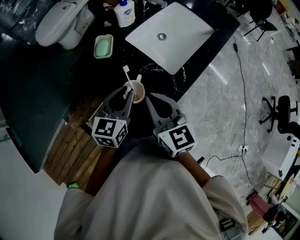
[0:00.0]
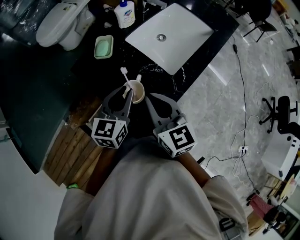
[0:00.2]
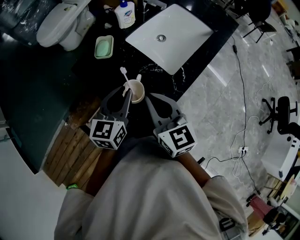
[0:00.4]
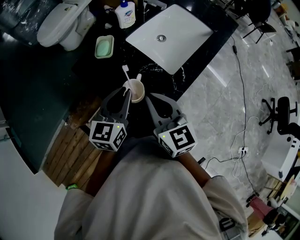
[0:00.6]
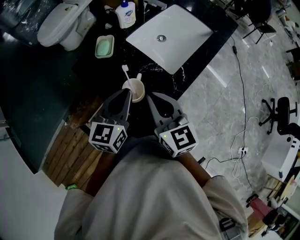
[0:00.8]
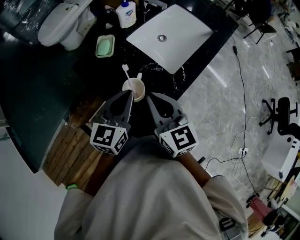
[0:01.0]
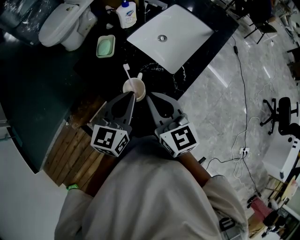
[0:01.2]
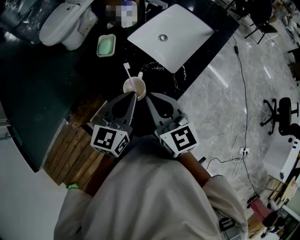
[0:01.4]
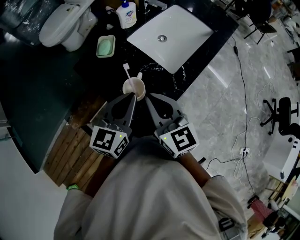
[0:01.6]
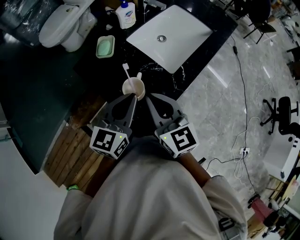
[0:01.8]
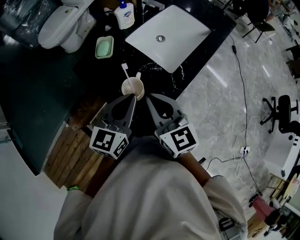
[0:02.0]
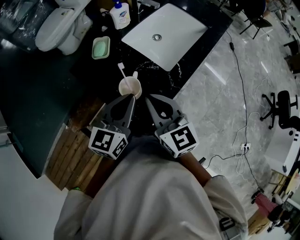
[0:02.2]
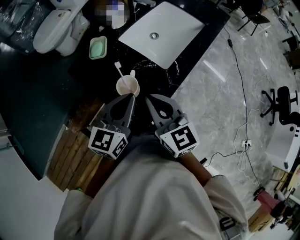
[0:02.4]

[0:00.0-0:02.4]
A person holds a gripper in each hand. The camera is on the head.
0:00.0 to 0:01.2: The left gripper moves approximately 5 cm.
0:01.2 to 0:02.4: The grippers stay close to where they were, moving slightly.

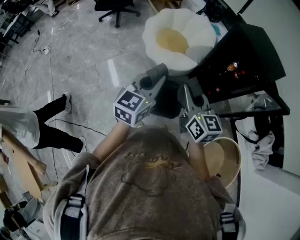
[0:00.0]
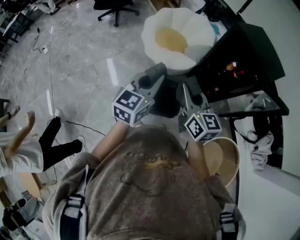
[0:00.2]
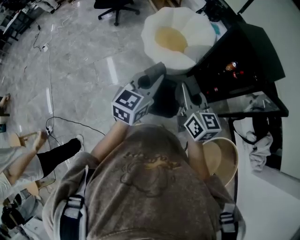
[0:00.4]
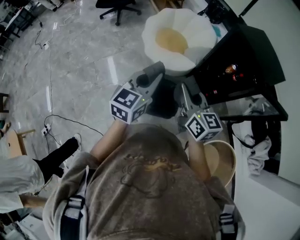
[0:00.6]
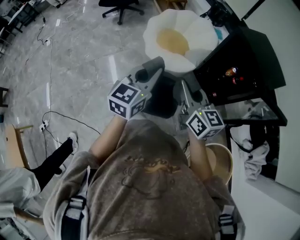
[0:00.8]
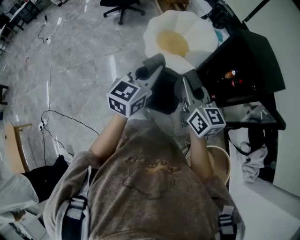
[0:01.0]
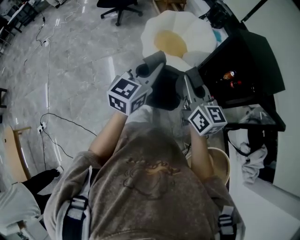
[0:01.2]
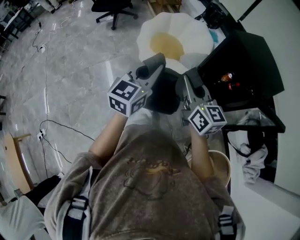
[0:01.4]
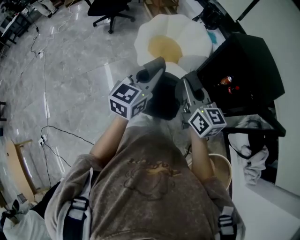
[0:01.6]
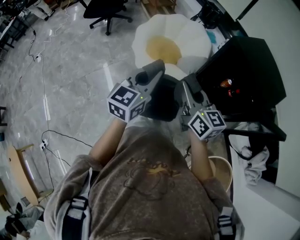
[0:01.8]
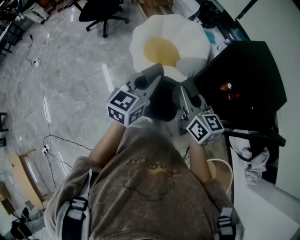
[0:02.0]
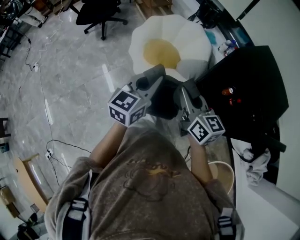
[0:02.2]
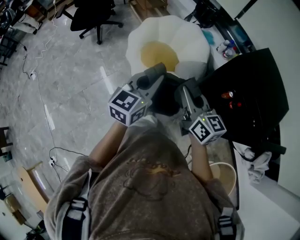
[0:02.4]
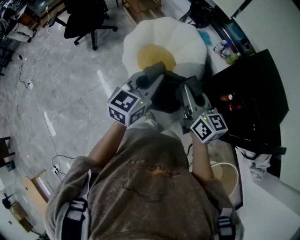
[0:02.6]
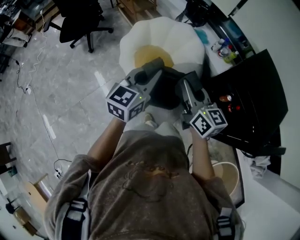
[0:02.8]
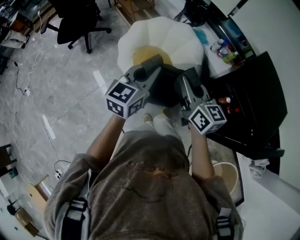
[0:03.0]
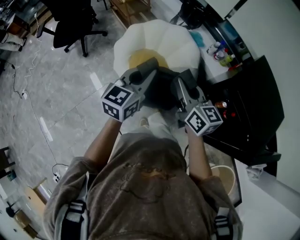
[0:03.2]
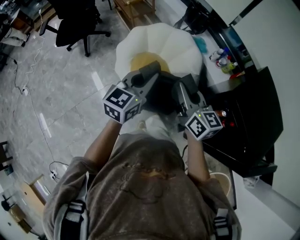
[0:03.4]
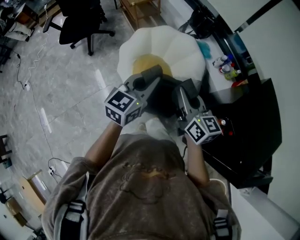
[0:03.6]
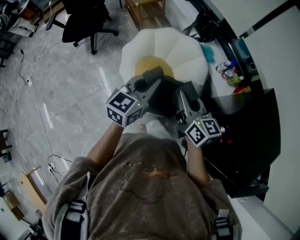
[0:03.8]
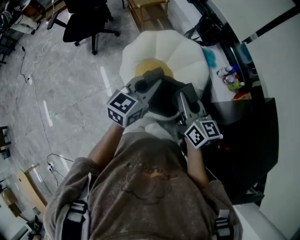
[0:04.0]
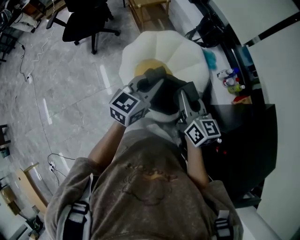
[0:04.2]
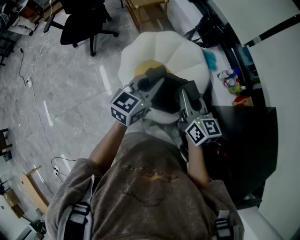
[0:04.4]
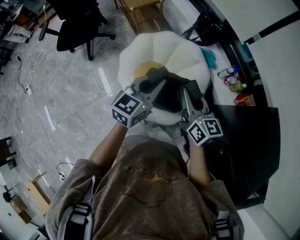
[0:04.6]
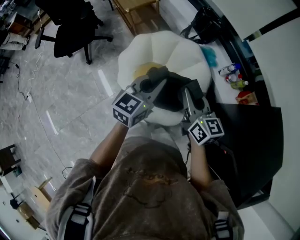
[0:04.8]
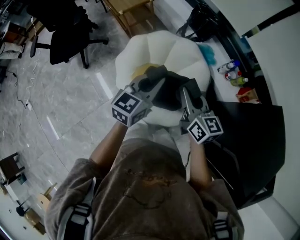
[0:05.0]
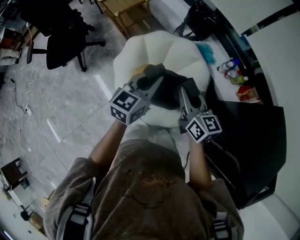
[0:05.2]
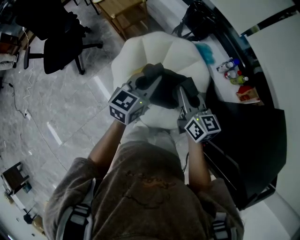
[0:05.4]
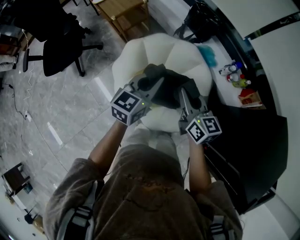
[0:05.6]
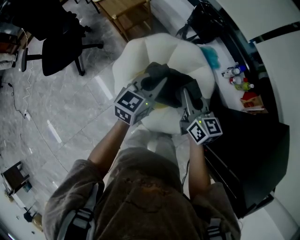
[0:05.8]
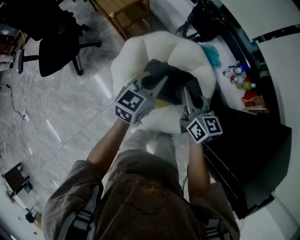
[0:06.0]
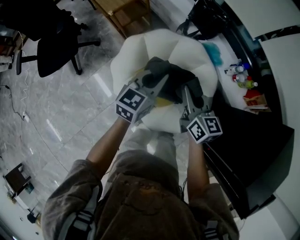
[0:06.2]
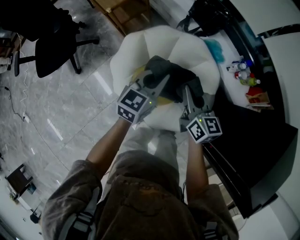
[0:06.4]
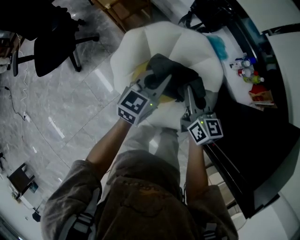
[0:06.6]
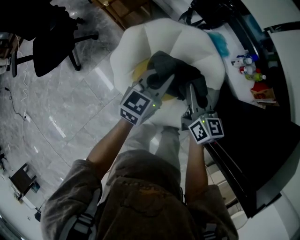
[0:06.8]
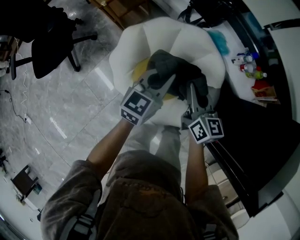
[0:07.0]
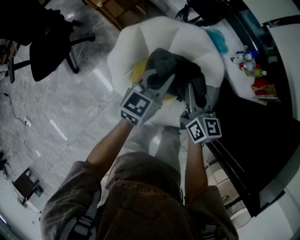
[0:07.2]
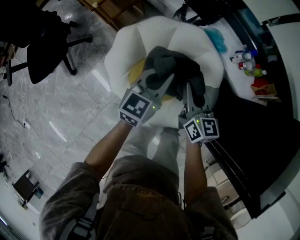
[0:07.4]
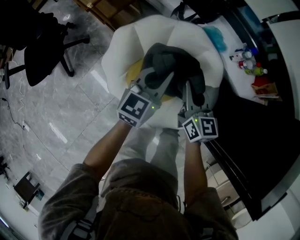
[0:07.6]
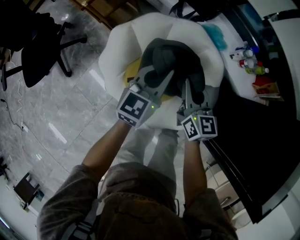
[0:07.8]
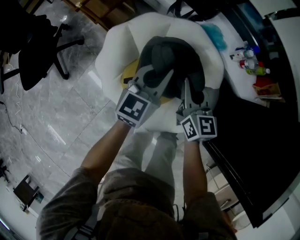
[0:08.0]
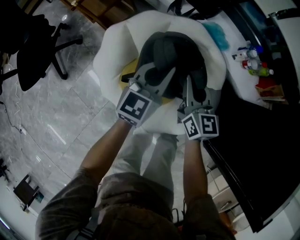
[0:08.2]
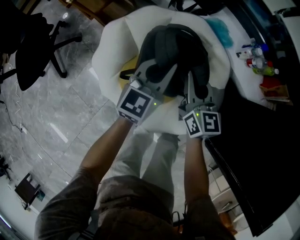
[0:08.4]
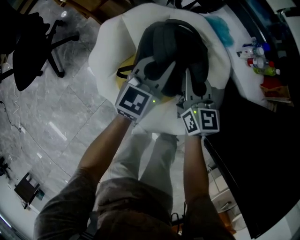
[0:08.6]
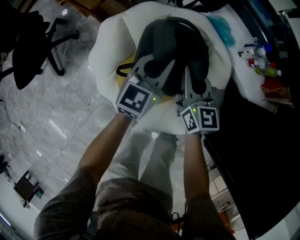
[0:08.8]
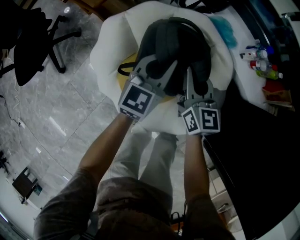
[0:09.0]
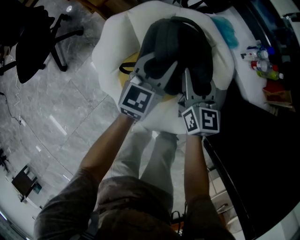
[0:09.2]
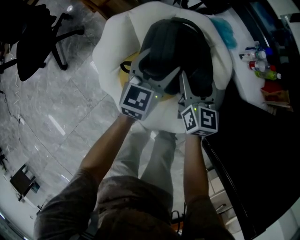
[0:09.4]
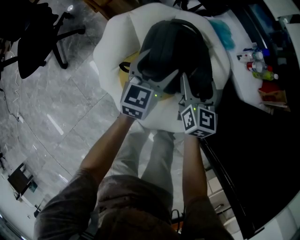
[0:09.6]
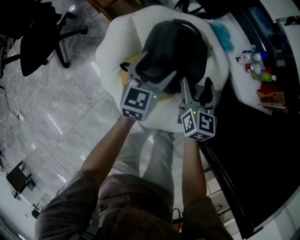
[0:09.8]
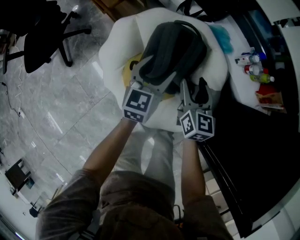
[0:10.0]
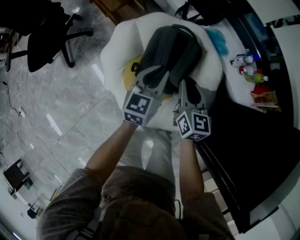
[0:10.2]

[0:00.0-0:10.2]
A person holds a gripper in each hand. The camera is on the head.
0:00.0 to 0:01.4: The right gripper travels forward and to the right by some 10 cm. The left gripper moves forward, roughly 10 cm.
0:01.4 to 0:03.0: Both grippers move forward, some 35 cm.
0:03.0 to 0:04.4: Both grippers move forward, about 20 cm.
0:04.4 to 0:05.8: Both grippers travel together forward and downward, about 20 cm.
0:05.8 to 0:07.2: Both grippers move downward, approximately 10 cm.
0:07.2 to 0:08.8: The grippers both shift downward and forward by some 15 cm.
0:08.8 to 0:10.2: Both grippers travel together backward and upward, roughly 10 cm. The left gripper opens, then closes again; the right gripper opens, then closes once more.

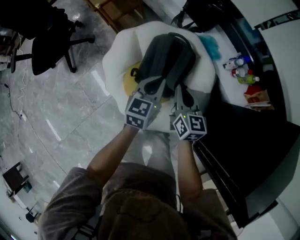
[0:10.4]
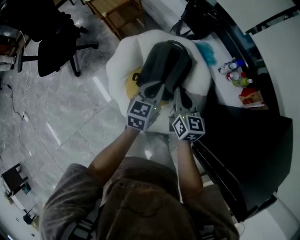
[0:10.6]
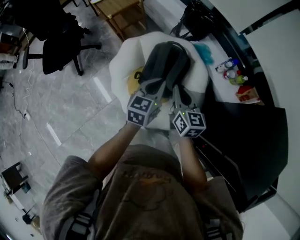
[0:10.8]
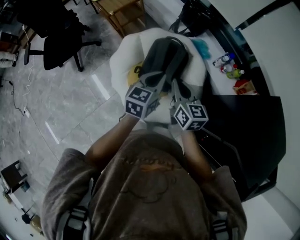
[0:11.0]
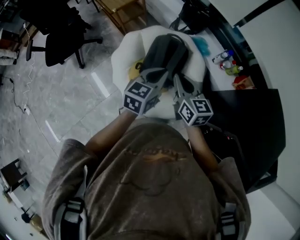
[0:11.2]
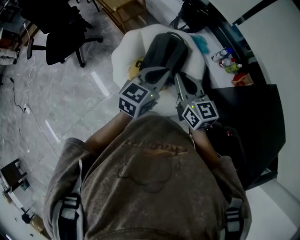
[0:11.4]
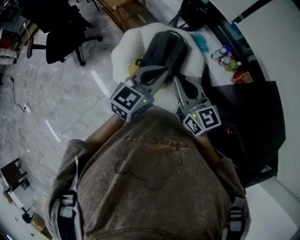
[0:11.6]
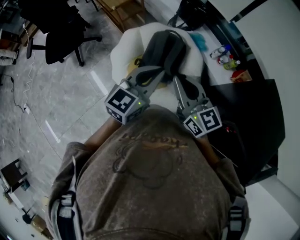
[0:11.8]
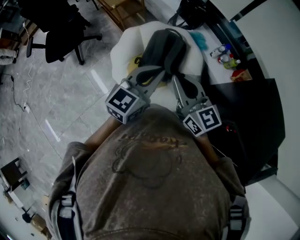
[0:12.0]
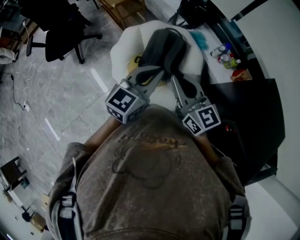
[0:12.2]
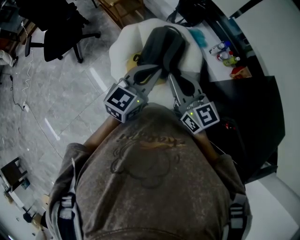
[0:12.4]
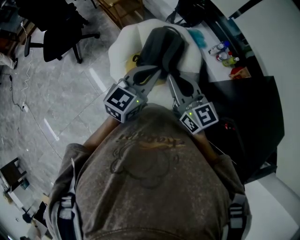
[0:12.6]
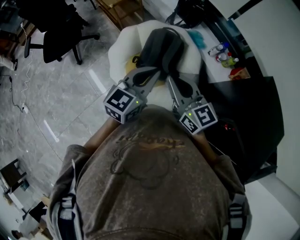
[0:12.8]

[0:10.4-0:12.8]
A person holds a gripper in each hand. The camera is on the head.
0:10.4 to 0:11.6: The two grippers go approximately 30 cm upward and backward. The right gripper swivels about 30 degrees.
0:11.6 to 0:12.8: The grippers make only small movements.

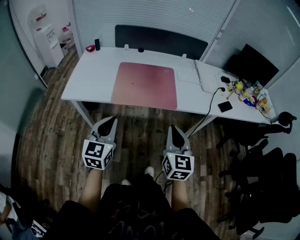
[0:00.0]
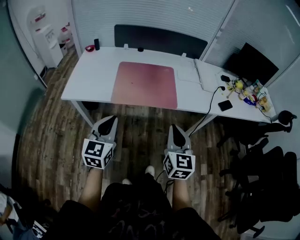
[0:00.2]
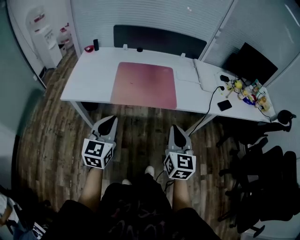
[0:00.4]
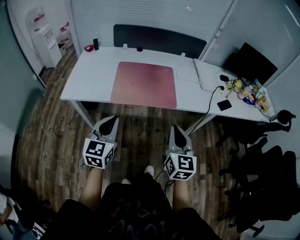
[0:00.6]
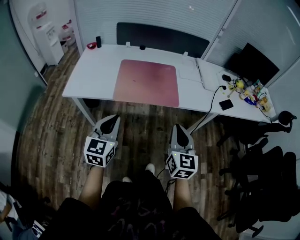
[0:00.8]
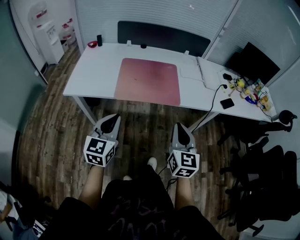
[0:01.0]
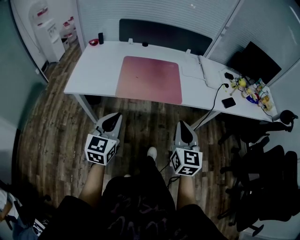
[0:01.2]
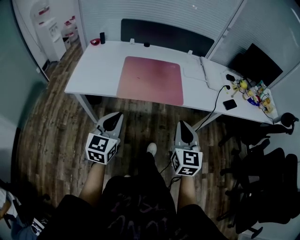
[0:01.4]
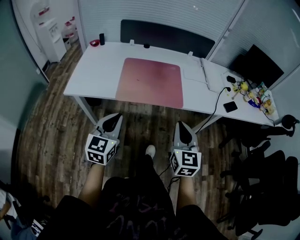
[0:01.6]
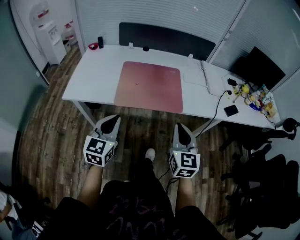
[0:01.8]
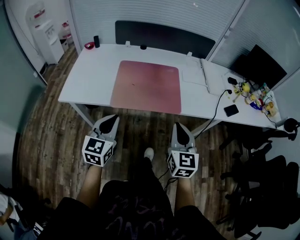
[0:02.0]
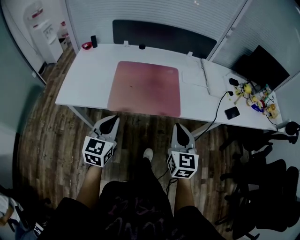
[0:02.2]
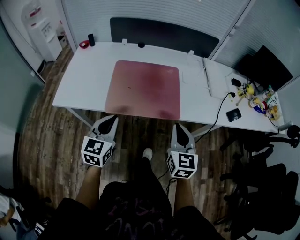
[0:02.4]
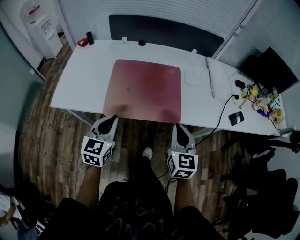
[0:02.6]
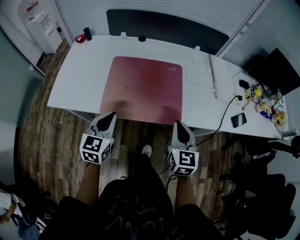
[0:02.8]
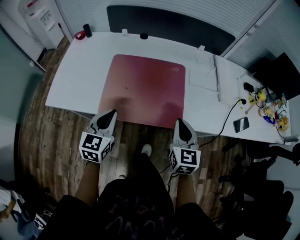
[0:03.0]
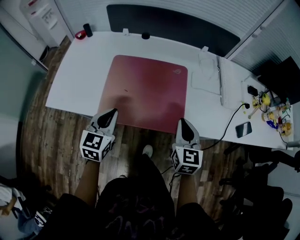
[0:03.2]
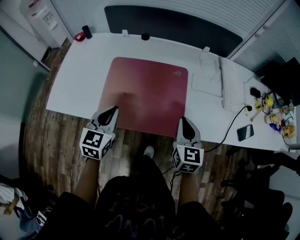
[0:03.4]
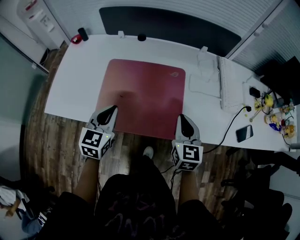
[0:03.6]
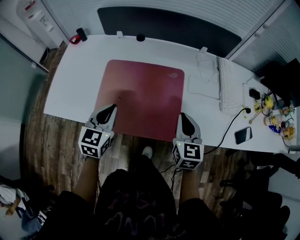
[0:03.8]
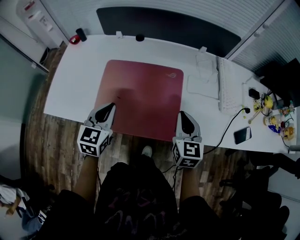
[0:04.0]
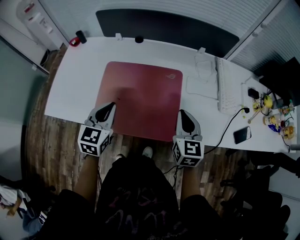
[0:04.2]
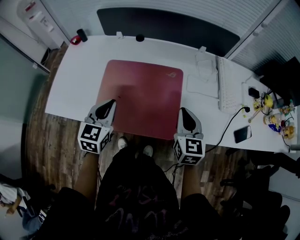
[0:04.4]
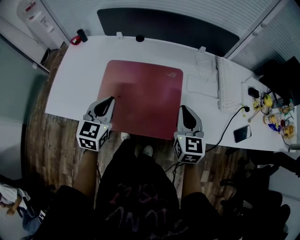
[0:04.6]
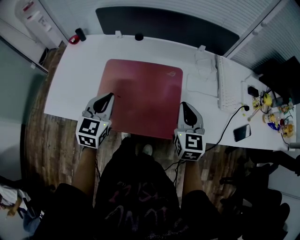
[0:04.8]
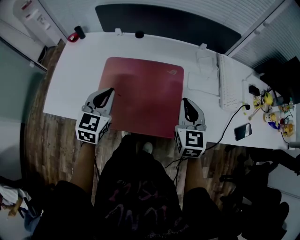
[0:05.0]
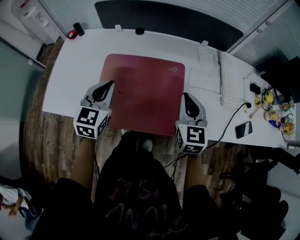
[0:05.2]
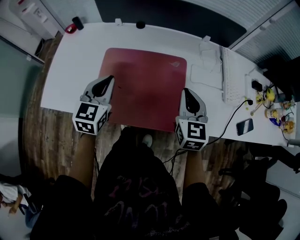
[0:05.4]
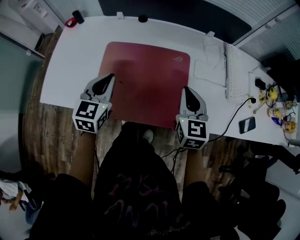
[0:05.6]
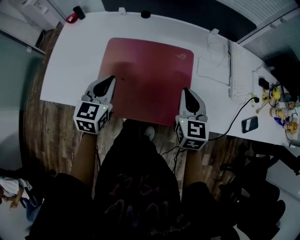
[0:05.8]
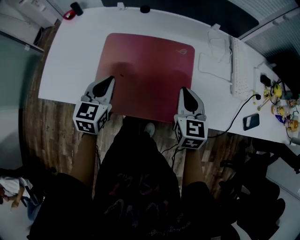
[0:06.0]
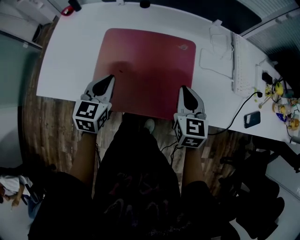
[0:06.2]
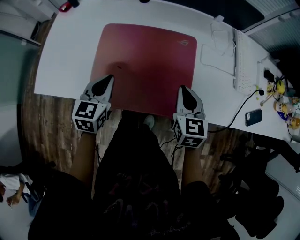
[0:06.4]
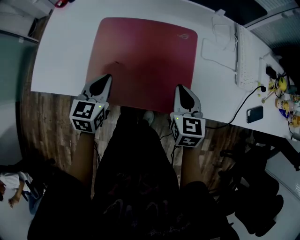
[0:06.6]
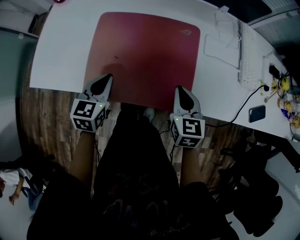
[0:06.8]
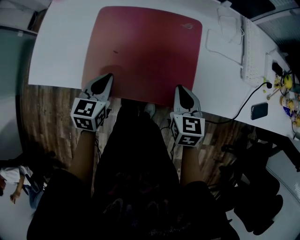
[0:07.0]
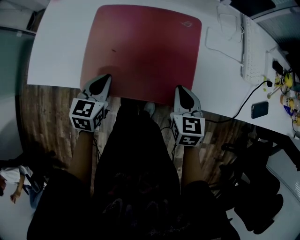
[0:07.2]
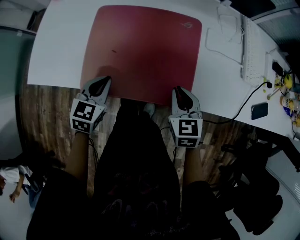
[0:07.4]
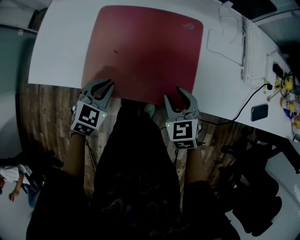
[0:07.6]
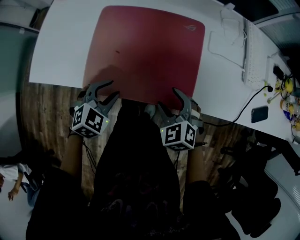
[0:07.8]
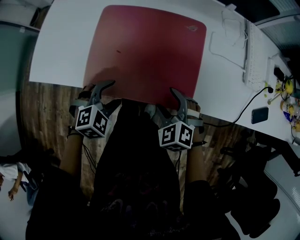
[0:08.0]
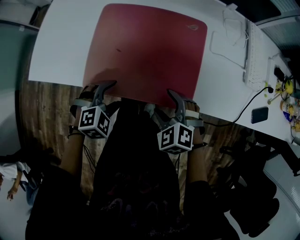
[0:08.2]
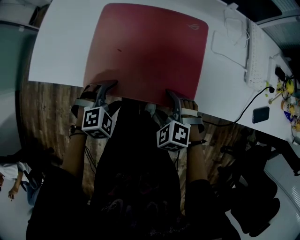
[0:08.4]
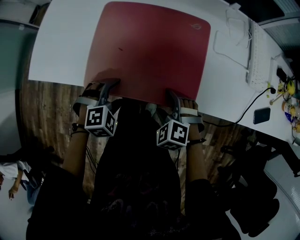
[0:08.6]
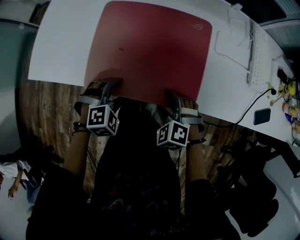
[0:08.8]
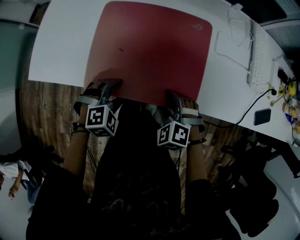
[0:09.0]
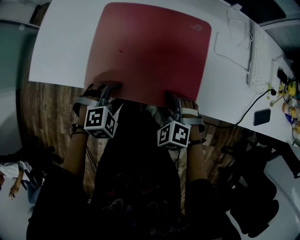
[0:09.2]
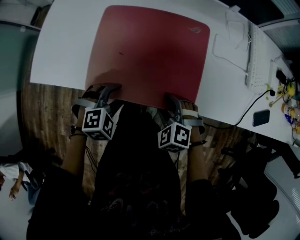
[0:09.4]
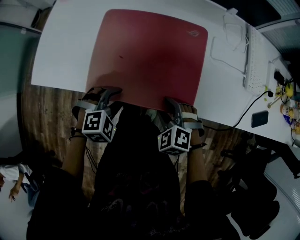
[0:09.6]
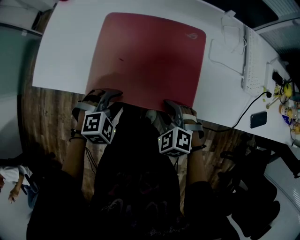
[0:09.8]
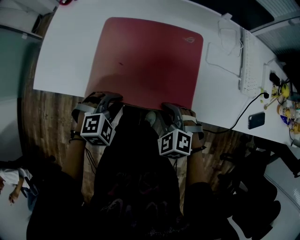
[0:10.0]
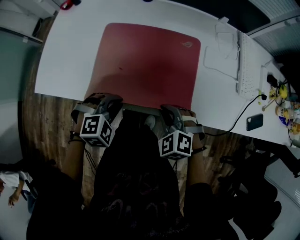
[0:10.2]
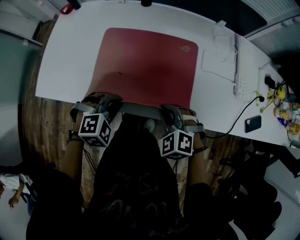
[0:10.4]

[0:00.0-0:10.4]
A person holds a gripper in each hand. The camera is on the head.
0:00.0 to 0:01.4: The grippers make only small movements.
0:01.4 to 0:03.0: Both grippers travel together forward, roughly 25 cm.
0:03.0 to 0:04.4: Both grippers travel together forward, about 10 cm.
0:04.4 to 0:06.0: The left gripper heads downward, covering some 5 cm; the right gripper moves about 5 cm.
0:06.0 to 0:07.4: The two grippers go approximately 10 cm downward and backward.
0:07.4 to 0:09.0: The right gripper shifts about 10 cm to the left and downward, rotates around the line of its fingers by roughly 50 degrees, counterclockwise from behind, and opens up. The left gripper goes some 5 cm downward, rotates around the line of its fingers by some 50 degrees, clockwise from behind, and opens up.
0:09.0 to 0:10.4: Both grippers travel together upward, some 10 cm. The left gripper closes up. Meanwhile the right gripper closes up.
